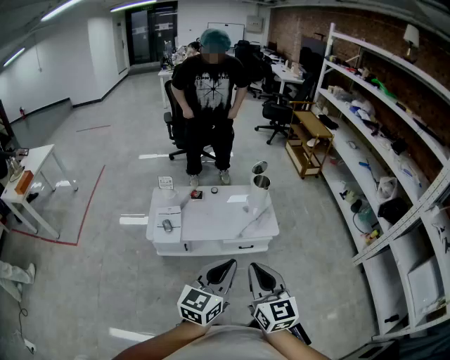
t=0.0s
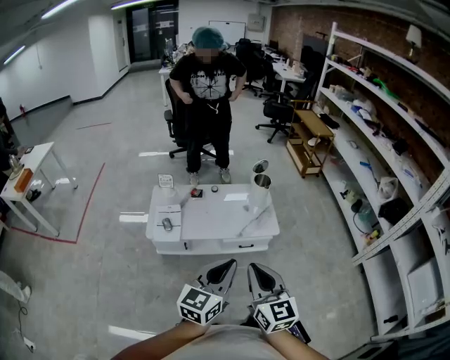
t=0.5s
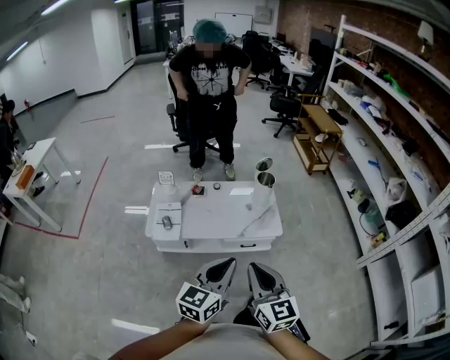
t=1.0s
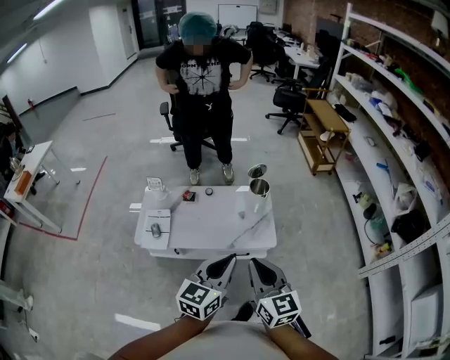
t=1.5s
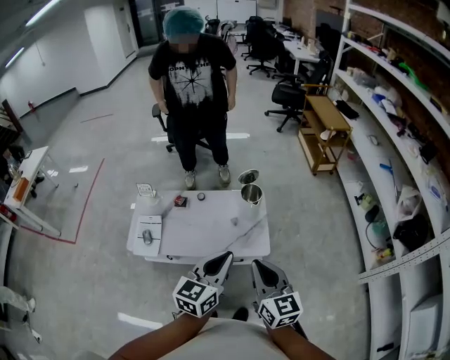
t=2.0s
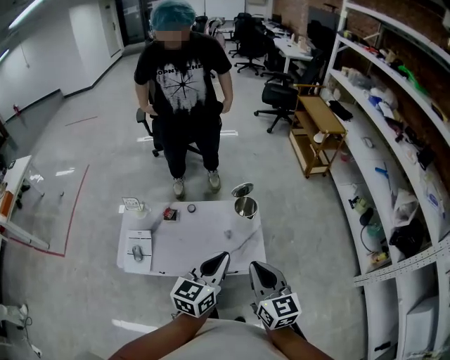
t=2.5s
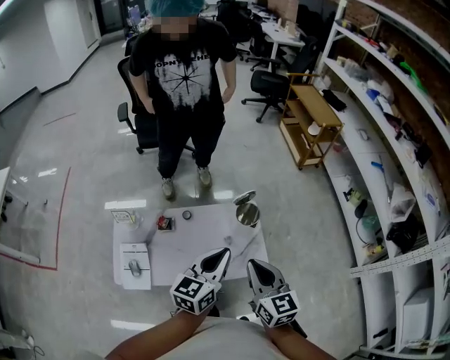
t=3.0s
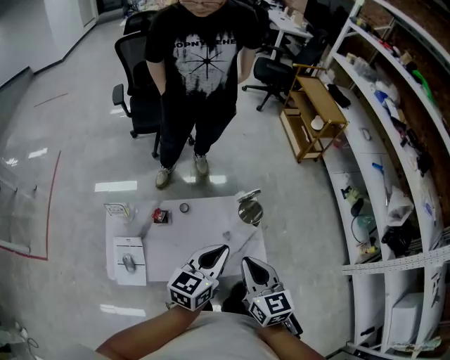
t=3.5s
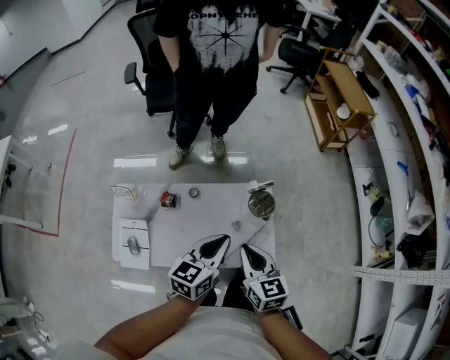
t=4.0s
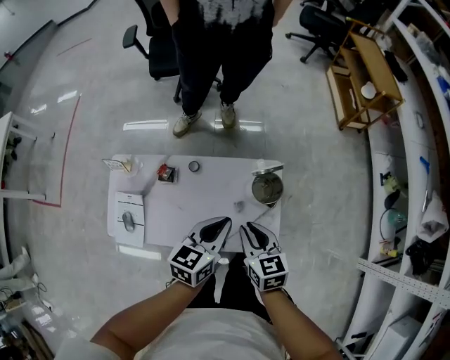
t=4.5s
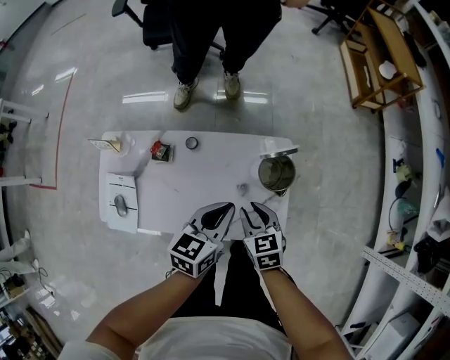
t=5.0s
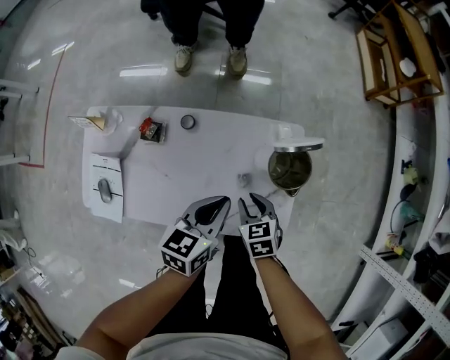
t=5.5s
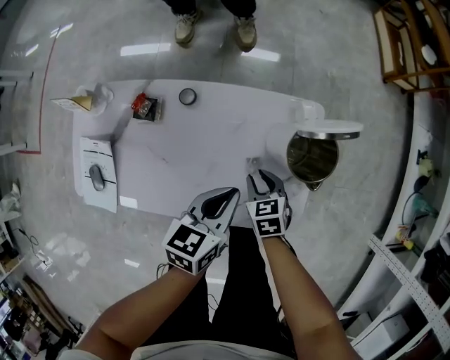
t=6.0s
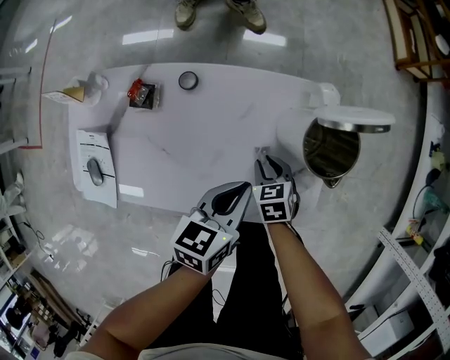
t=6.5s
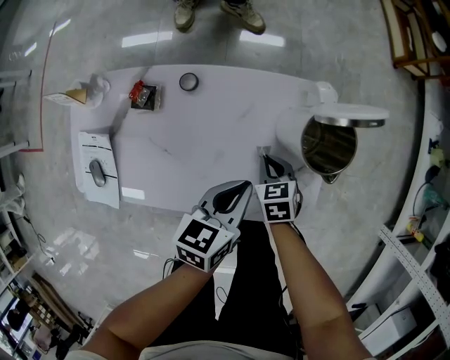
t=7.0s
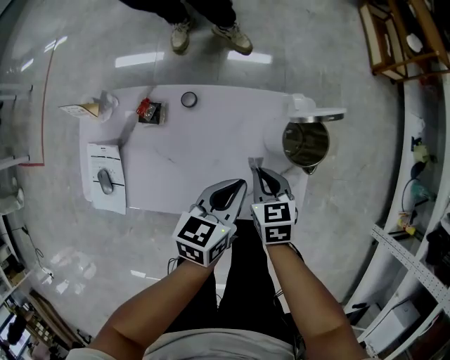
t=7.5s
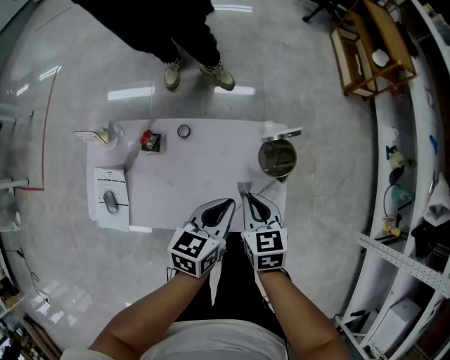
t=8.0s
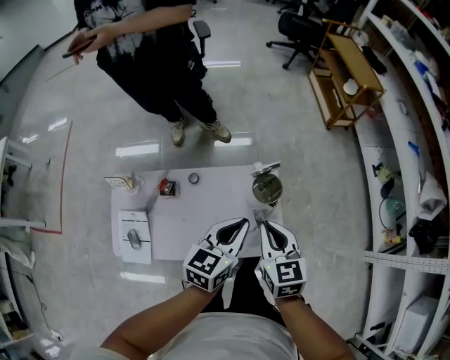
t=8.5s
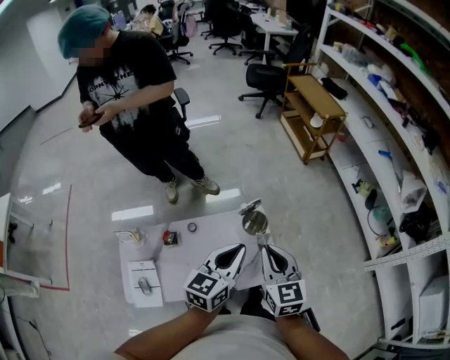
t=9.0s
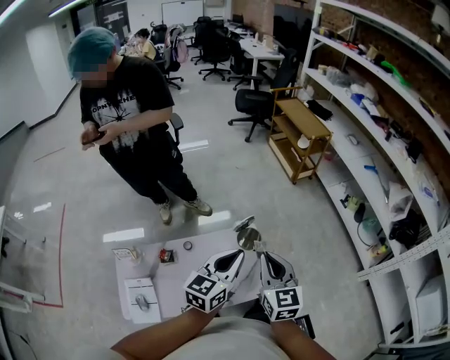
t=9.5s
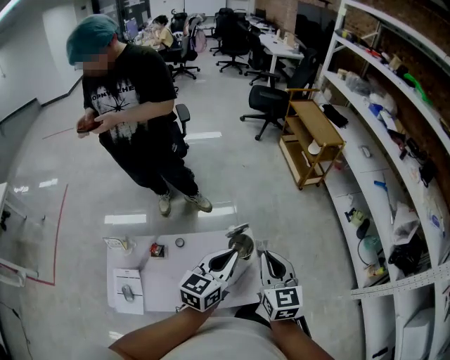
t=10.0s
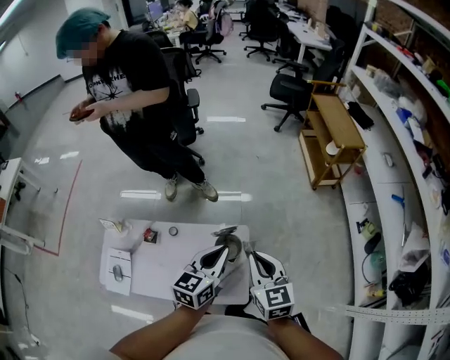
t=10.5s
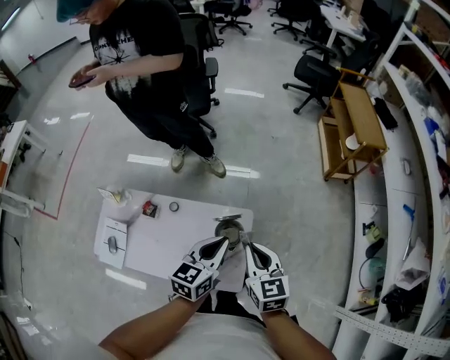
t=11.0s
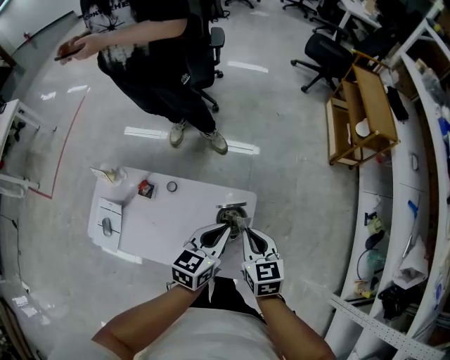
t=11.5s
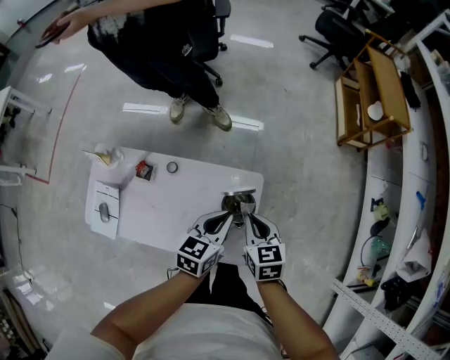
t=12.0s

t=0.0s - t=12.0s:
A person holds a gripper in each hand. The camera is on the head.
t=0.0s - t=2.0s: Both grippers move forward and to the right, approximately 35 cm.
t=2.0s - t=4.0s: The right gripper heads forward, to the left and downward, covering some 35 cm. Meanwhile the left gripper travels forward and downward by approximately 30 cm.
t=4.0s - t=6.0s: Both grippers move downward, approximately 40 cm. The right gripper points its fingers roughly 30 degrees further downward.
t=6.0s - t=8.0s: The left gripper moves upward, about 15 cm. Meanwhile the right gripper travels upward by about 25 cm.
t=8.0s - t=10.0s: The grippers both shift upward by some 30 cm. The left gripper rotates roughly 30 degrees. The right gripper rotates roughly 30 degrees.
t=10.0s - t=12.0s: The two grippers go about 25 cm downward and forward. The right gripper changes its angle by roughly 40 degrees. The left gripper swivels some 30 degrees.

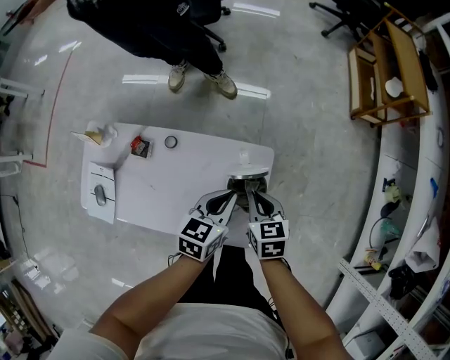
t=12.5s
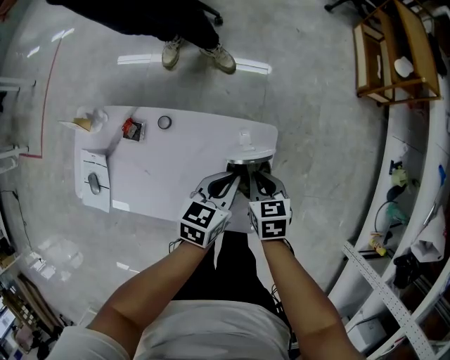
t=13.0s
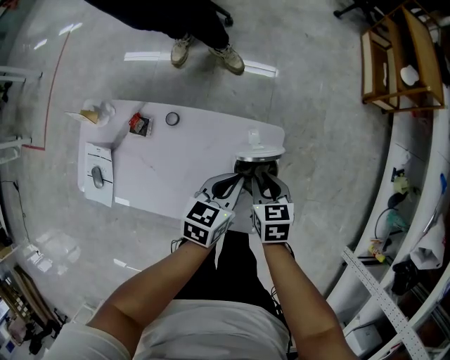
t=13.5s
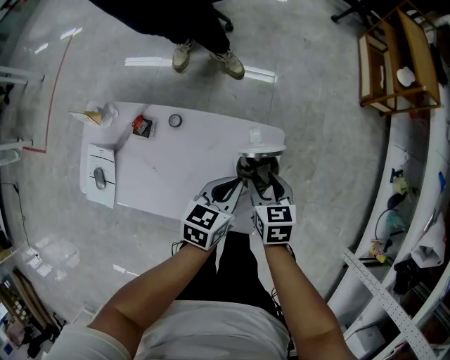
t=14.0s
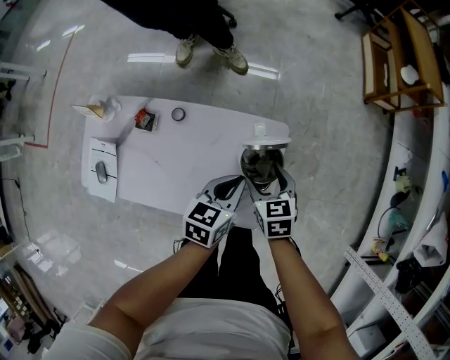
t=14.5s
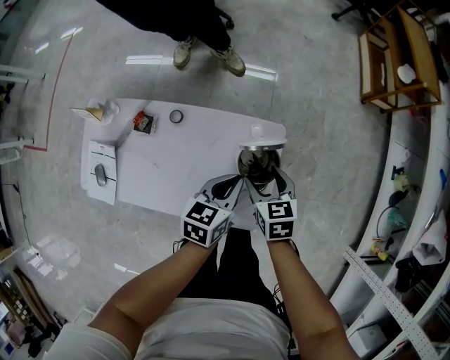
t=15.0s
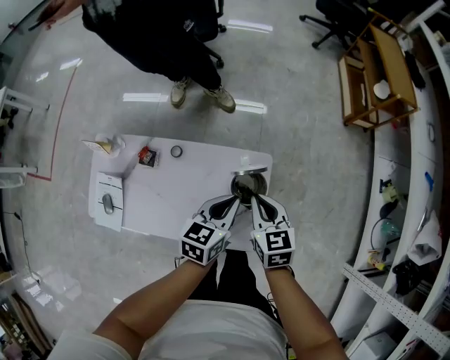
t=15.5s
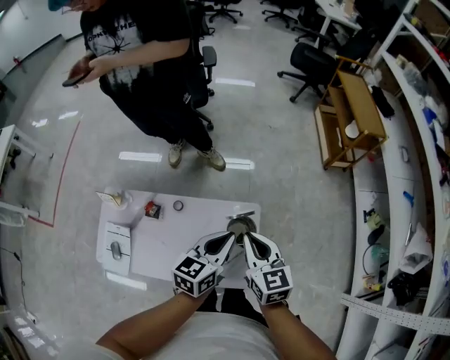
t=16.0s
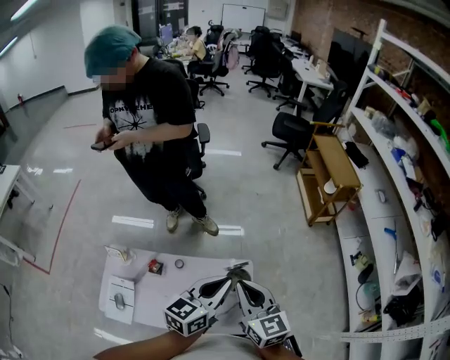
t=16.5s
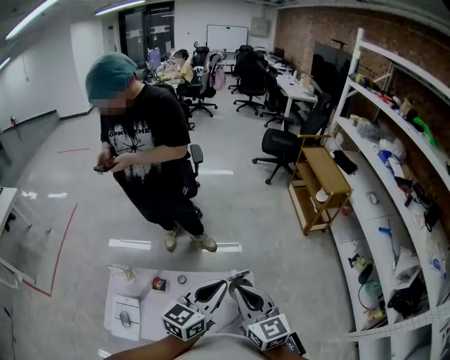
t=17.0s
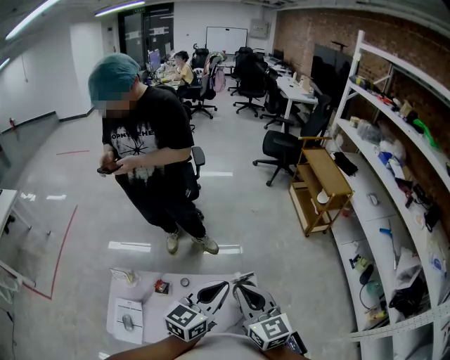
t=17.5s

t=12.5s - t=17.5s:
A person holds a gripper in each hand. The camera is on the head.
t=12.5s - t=15.0s: The right gripper opens up. Meanwhile the left gripper ends up about 5 cm from where it was.
t=15.0s - t=17.5s: The two grippers go approximately 40 cm upward. The right gripper angles its fingers upward, by some 40 degrees, and closes up. Meanwhile the left gripper rotates roughly 40 degrees.

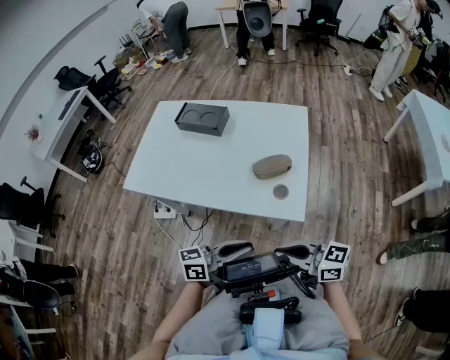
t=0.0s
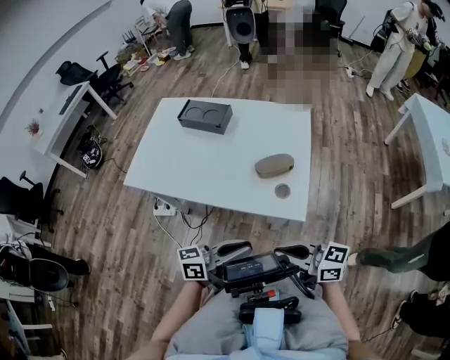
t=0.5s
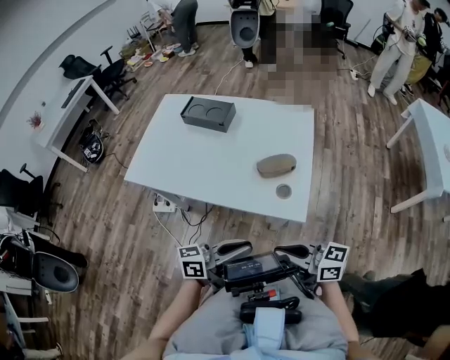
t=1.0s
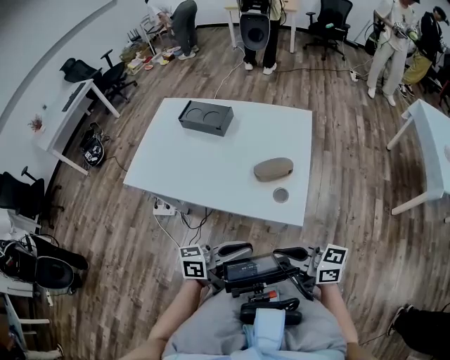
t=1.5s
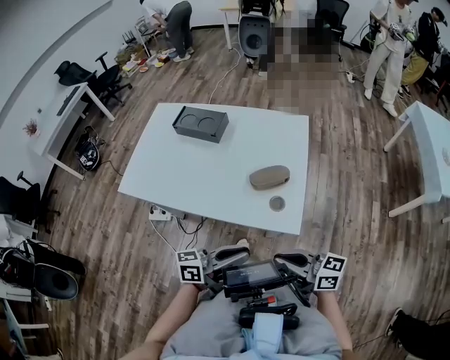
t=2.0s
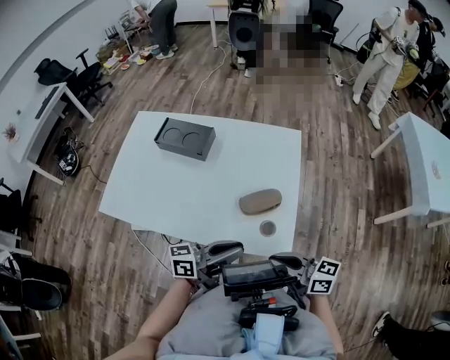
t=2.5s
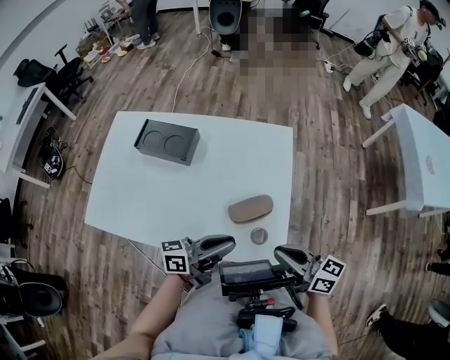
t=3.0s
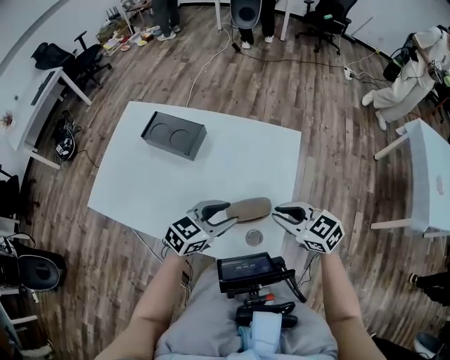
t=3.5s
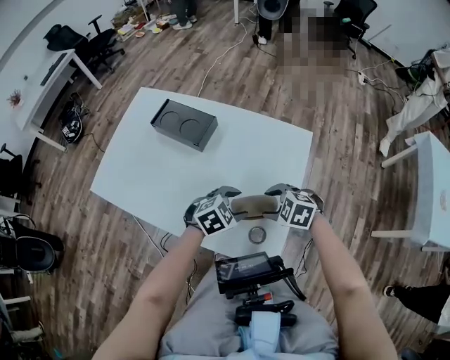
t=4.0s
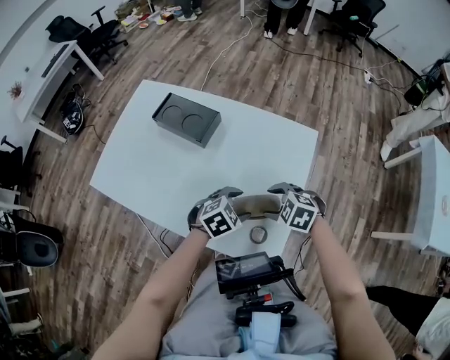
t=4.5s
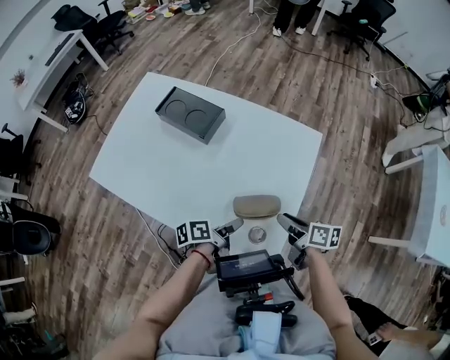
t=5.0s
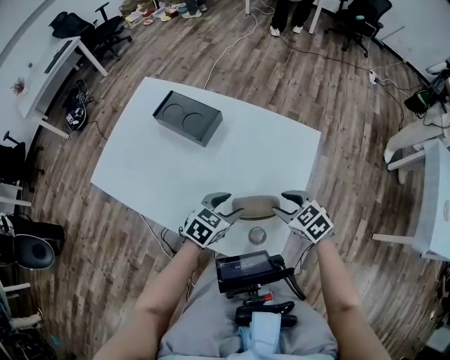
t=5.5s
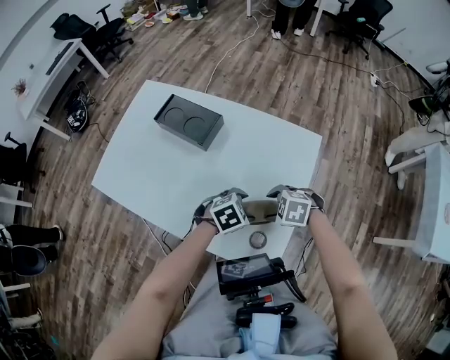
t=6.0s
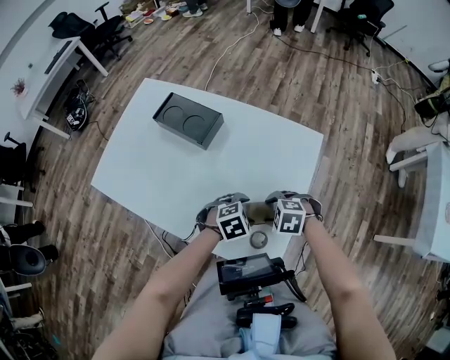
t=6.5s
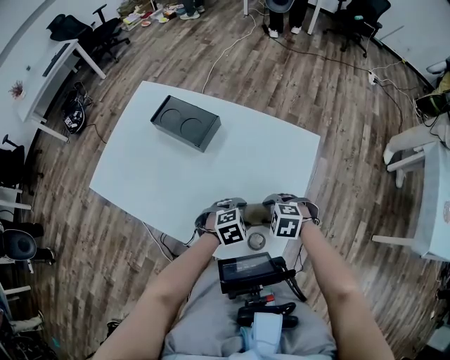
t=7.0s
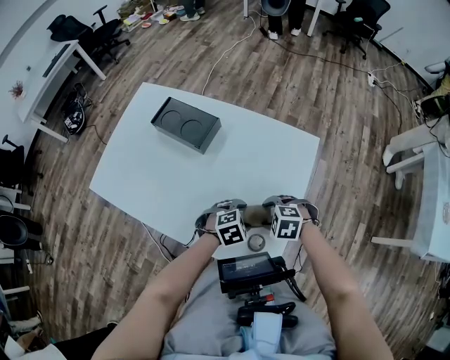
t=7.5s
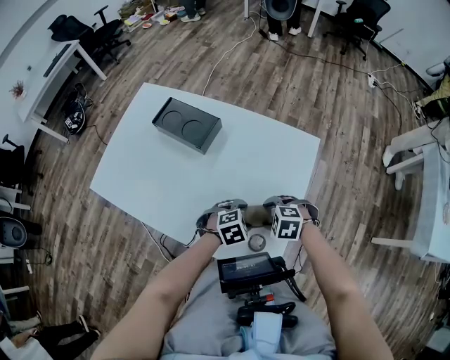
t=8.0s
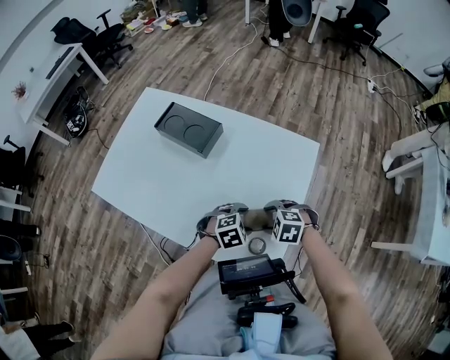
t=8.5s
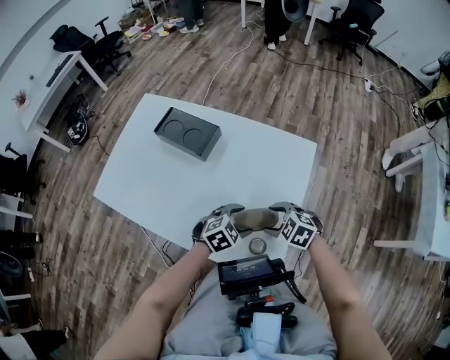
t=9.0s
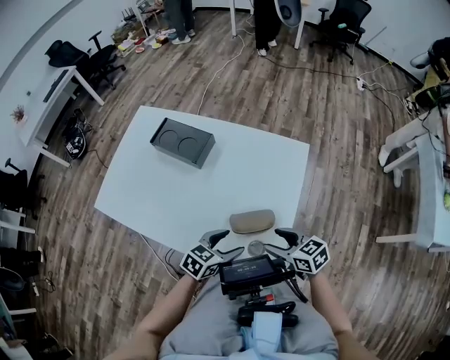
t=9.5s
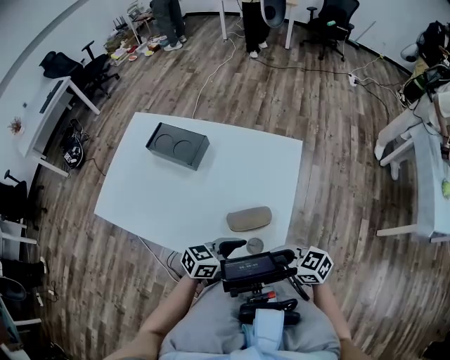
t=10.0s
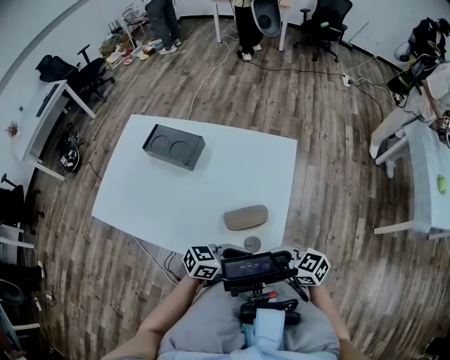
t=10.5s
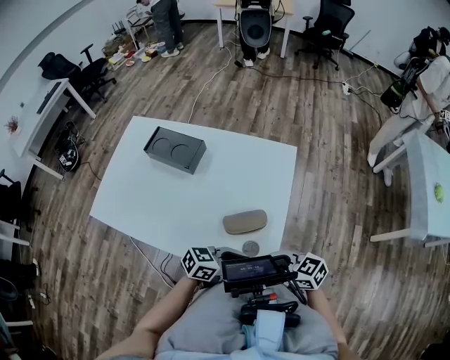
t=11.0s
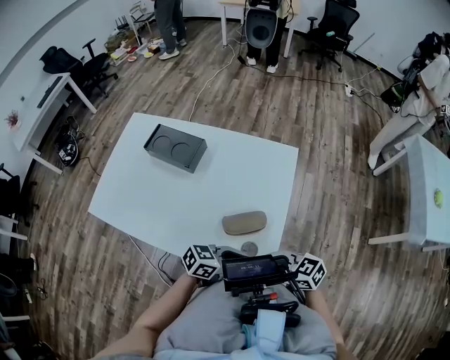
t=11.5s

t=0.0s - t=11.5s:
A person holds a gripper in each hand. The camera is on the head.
t=0.0s - t=2.0s: The grippers make only small movements.
t=2.0s - t=4.0s: The right gripper shifts by some 30 cm, tilts its fingers about 60 degrees downward, and opens. Meanwhile the left gripper ends up some 30 cm from where it was, tips its fingers downward by about 60 degrees, and opens its fingers.
t=6.0s - t=7.5s: The grippers make only small movements.
t=7.5s - t=9.5s: The grippers both shift upward by approximately 5 cm. The left gripper turns by some 40 degrees, while the right gripper angles its fingers upward, by approximately 40 degrees.
t=9.5s - t=11.5s: The right gripper shifts by about 10 cm, and closes. The left gripper ends up about 10 cm from where it was, changes its angle by approximately 30 degrees, and closes.
